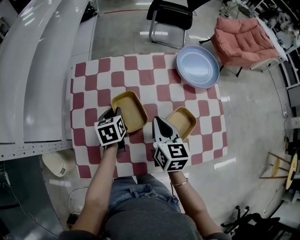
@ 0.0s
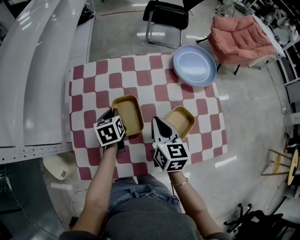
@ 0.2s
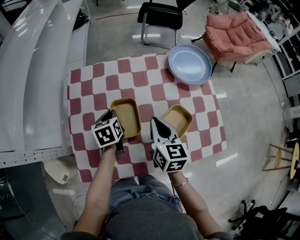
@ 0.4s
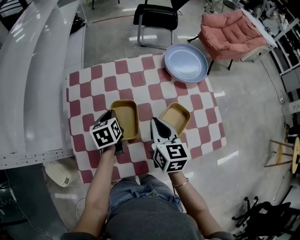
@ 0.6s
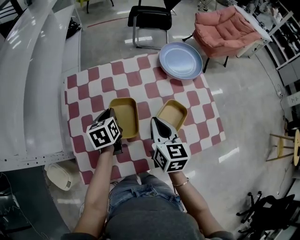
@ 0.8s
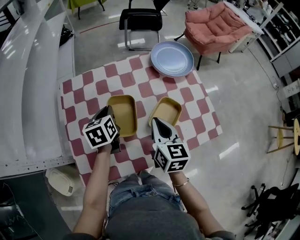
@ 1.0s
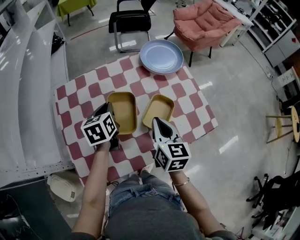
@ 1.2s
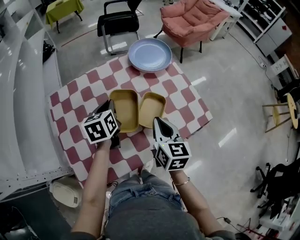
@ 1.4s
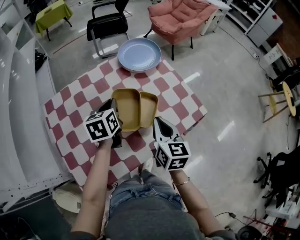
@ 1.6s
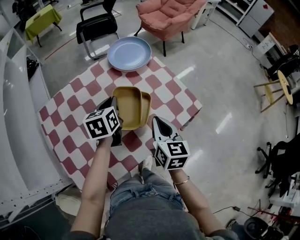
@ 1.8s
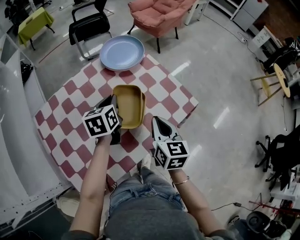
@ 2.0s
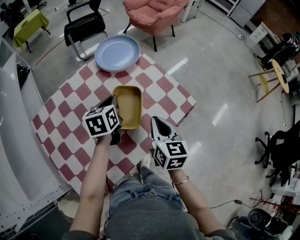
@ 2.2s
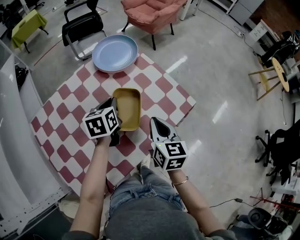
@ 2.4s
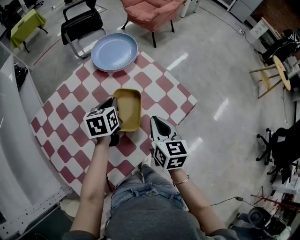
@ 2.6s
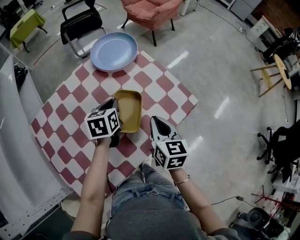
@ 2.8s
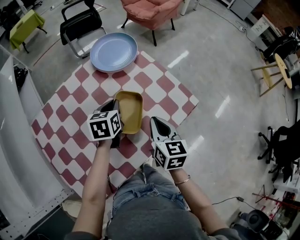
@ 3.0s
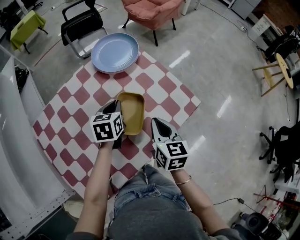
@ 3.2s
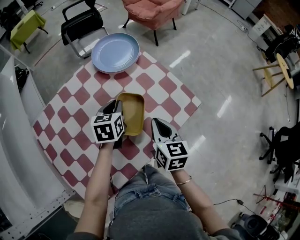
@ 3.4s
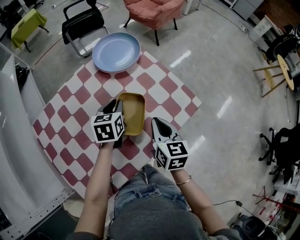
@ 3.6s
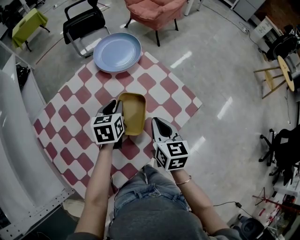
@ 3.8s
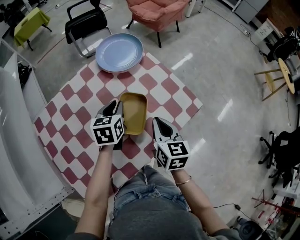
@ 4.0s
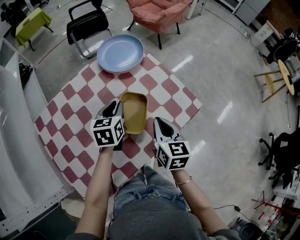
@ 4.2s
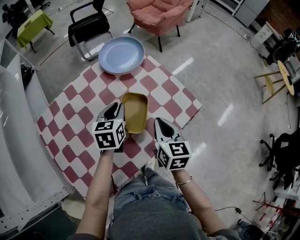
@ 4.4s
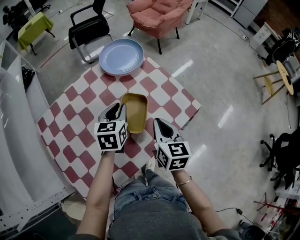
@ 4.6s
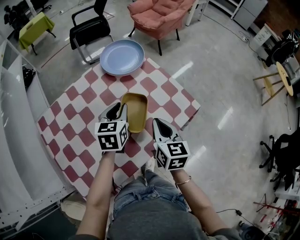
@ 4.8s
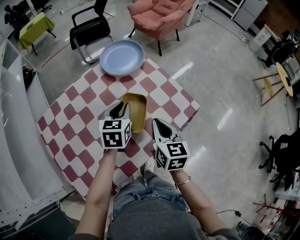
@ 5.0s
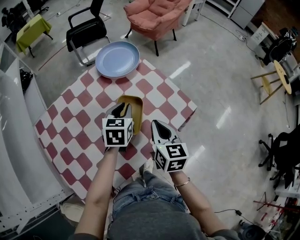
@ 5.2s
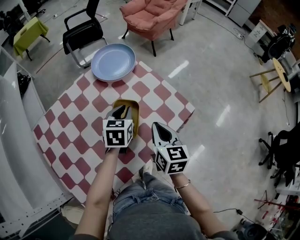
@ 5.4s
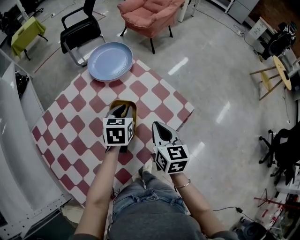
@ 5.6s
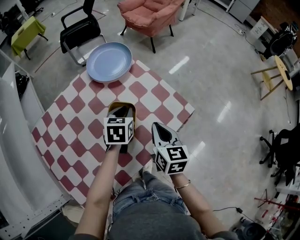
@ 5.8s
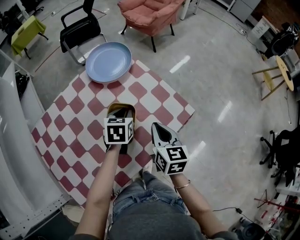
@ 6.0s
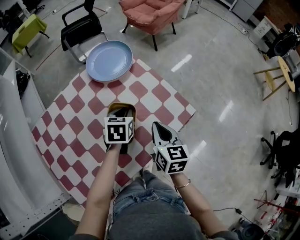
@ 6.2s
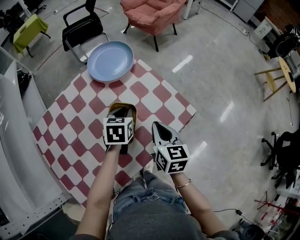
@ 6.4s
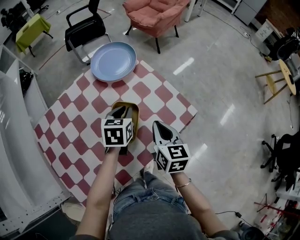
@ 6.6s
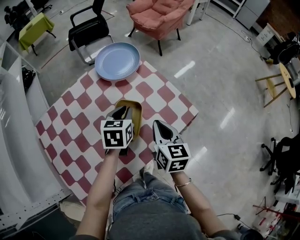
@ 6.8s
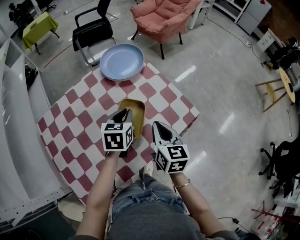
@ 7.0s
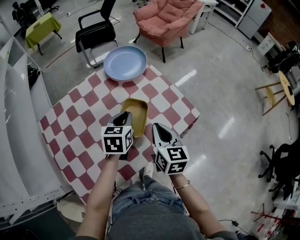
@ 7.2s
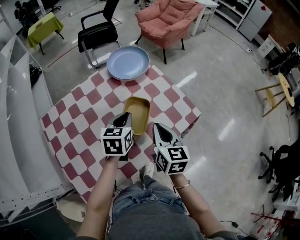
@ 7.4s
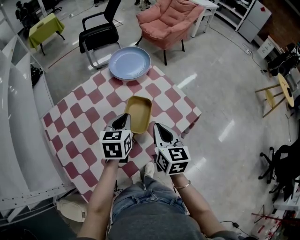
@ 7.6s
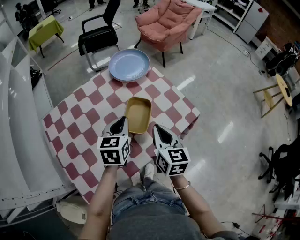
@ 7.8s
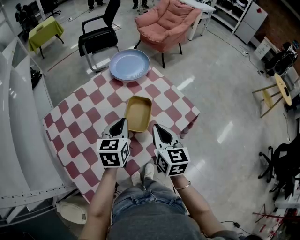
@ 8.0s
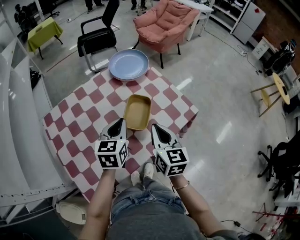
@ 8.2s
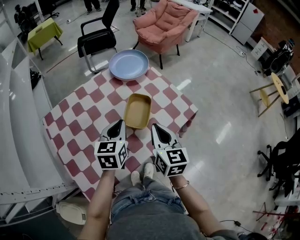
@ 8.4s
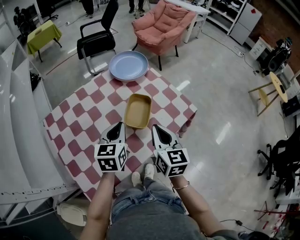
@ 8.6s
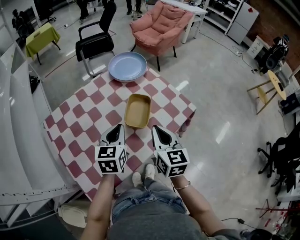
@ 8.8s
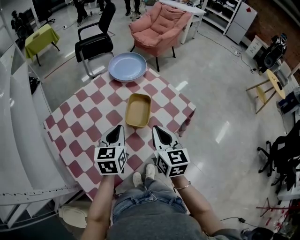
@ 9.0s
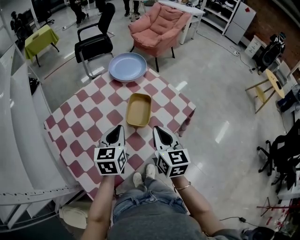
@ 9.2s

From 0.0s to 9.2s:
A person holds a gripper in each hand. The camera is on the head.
From 0.0s to 1.6s: The left gripper shifts by approximately 20 cm, and changes its angle by approximately 30 degrees. The right gripper changes place by roughly 15 cm, and changes its angle by about 30 degrees.
From 1.6s to 3.0s: The right gripper goes roughly 5 cm to the right; the left gripper is displaced to the right, downward and forward by about 10 cm.
From 3.0s to 4.6s: The left gripper shifts by roughly 5 cm.
From 4.6s to 6.2s: The right gripper moves roughly 5 cm. The left gripper is displaced to the right and downward by roughly 10 cm.
From 6.2s to 7.6s: The right gripper goes some 10 cm to the left, backward and upward. Meanwhile the left gripper goes some 15 cm backward, upward and to the left.
From 7.6s to 9.2s: Both grippers move backward, some 10 cm.

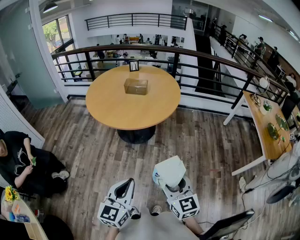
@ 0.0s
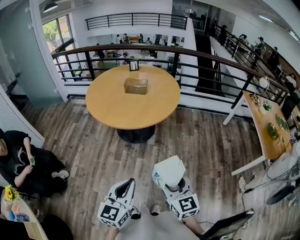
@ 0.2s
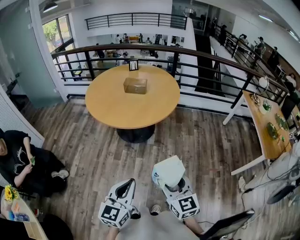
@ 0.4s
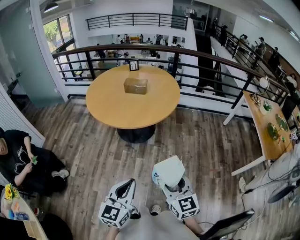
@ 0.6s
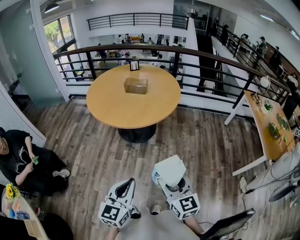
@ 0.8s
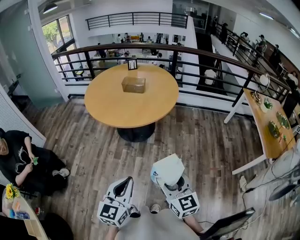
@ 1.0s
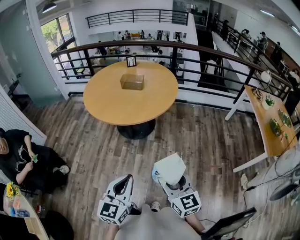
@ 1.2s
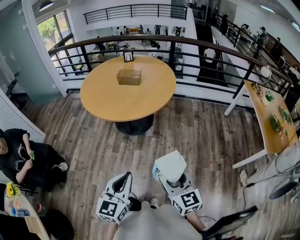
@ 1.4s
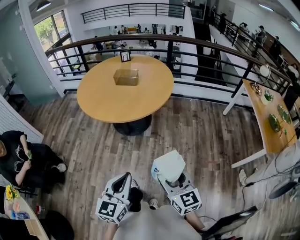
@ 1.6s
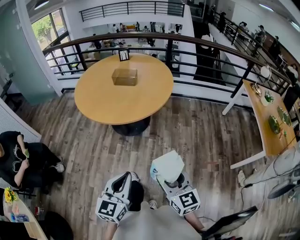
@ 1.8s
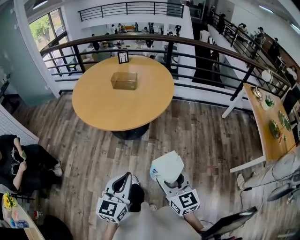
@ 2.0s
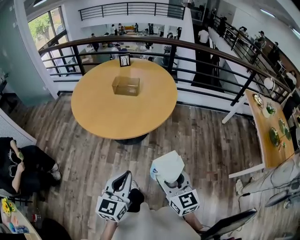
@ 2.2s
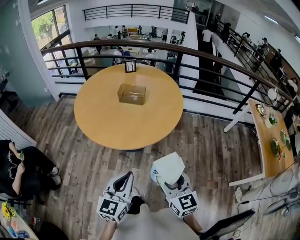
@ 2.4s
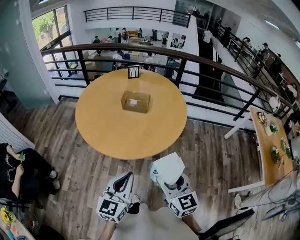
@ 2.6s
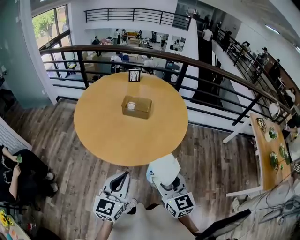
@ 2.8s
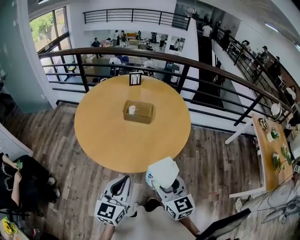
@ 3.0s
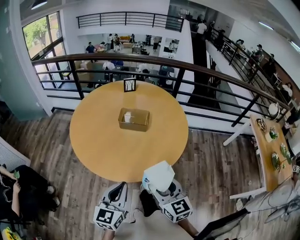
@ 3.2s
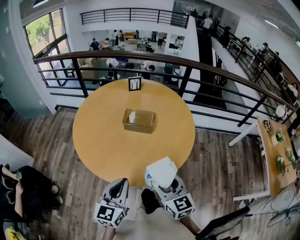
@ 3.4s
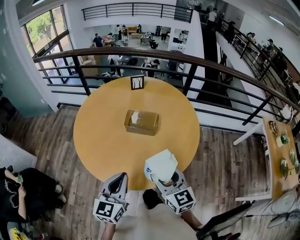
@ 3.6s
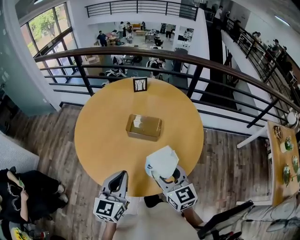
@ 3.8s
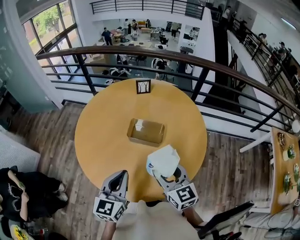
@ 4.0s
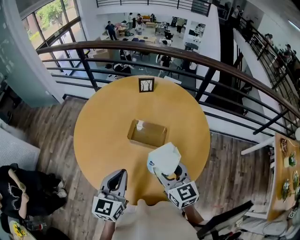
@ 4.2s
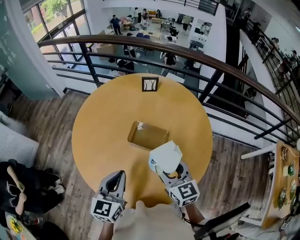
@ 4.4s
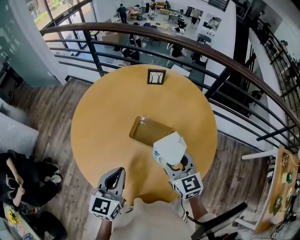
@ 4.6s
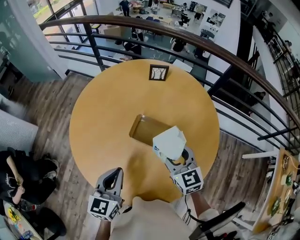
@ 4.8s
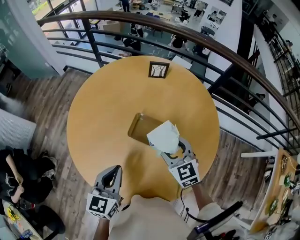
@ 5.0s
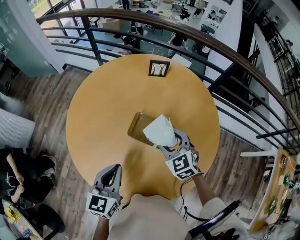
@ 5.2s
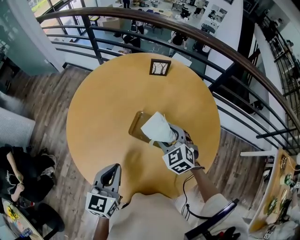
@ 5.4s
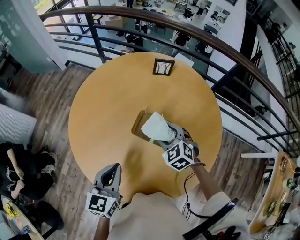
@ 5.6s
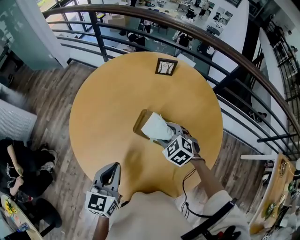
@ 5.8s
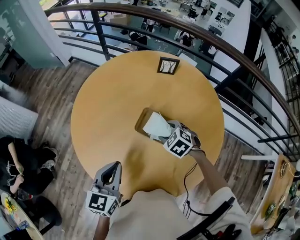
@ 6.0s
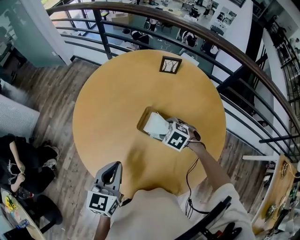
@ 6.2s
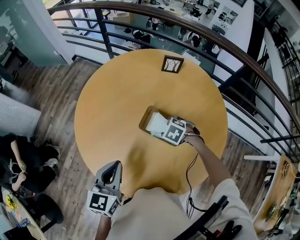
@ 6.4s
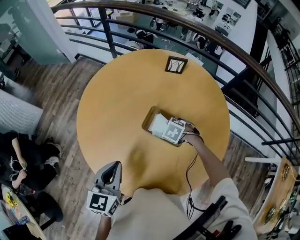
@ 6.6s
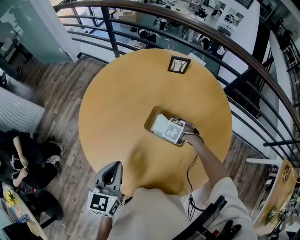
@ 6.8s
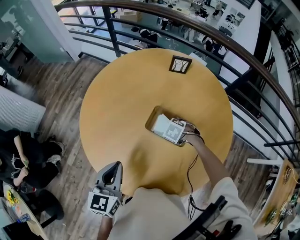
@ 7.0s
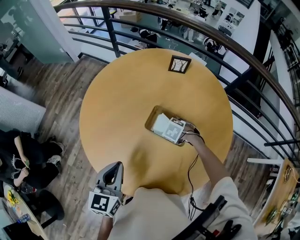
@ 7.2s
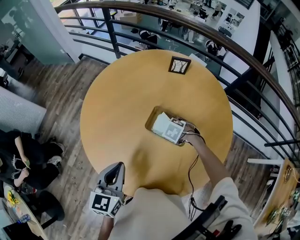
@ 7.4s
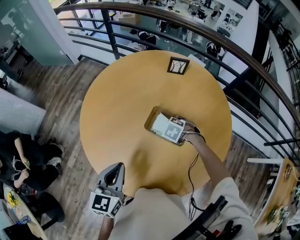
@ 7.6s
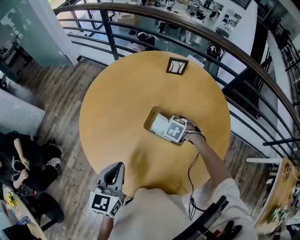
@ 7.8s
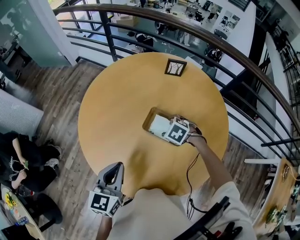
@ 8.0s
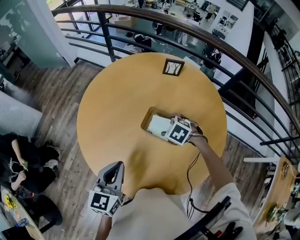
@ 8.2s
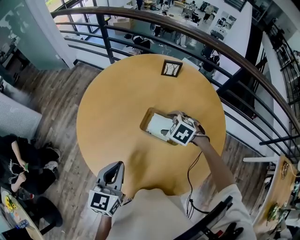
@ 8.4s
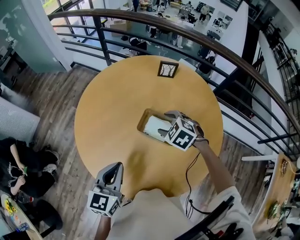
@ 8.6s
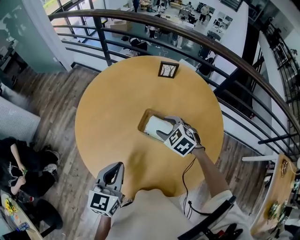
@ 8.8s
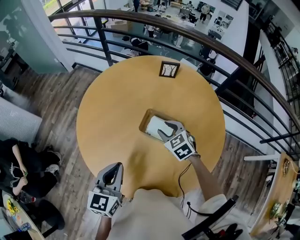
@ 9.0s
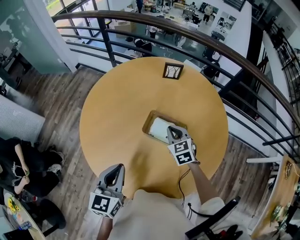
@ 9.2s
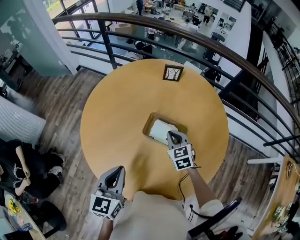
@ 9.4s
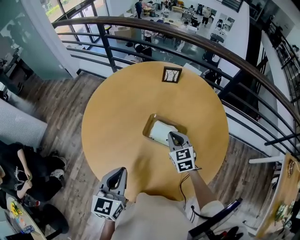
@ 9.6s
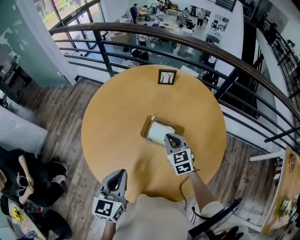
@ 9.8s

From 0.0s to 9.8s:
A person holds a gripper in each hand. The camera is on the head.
From 0.0s to 1.4s: The right gripper heads to the right, covering approximately 5 cm.
From 1.4s to 2.8s: Both grippers move forward, approximately 25 cm.
From 2.8s to 4.2s: The grippers both shift forward by approximately 25 cm.
From 4.2s to 5.6s: The right gripper heads forward and downward, covering approximately 20 cm, and tilts its fingers roughly 30 degrees downward, while the left gripper moves about 5 cm.
From 5.6s to 7.0s: The right gripper moves downward, approximately 15 cm, and tilts its fingers roughly 30 degrees downward.
From 7.0s to 8.4s: The right gripper moves upward, roughly 15 cm.
From 8.4s to 9.8s: The right gripper points its fingers roughly 40 degrees further upward, and closes its fingers.

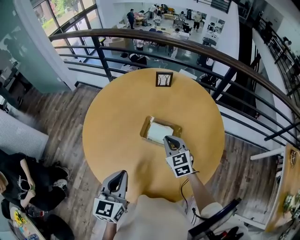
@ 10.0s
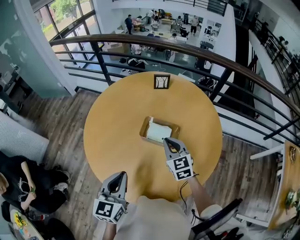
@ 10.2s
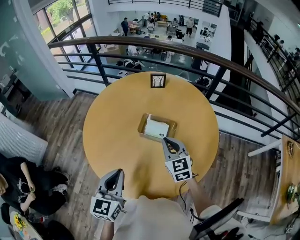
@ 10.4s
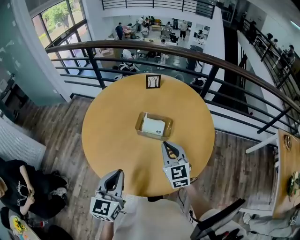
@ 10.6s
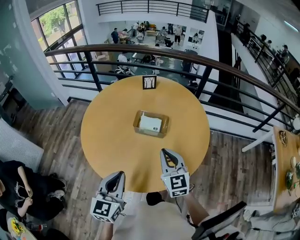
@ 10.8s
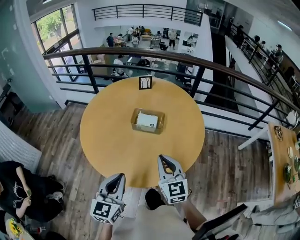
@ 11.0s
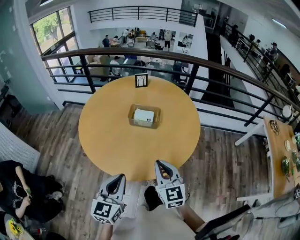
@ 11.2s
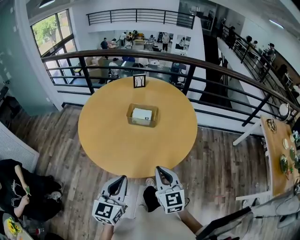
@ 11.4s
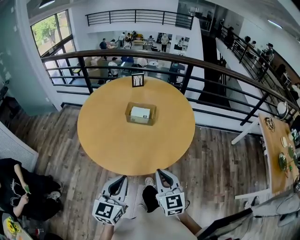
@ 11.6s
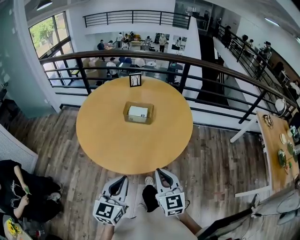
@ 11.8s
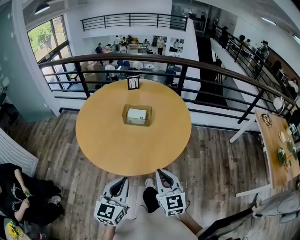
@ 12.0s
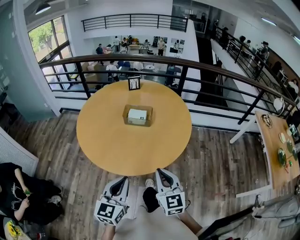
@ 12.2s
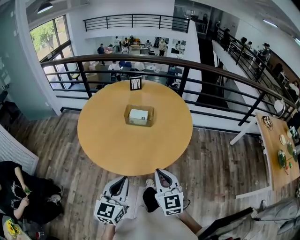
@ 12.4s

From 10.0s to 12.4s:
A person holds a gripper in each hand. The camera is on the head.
From 10.0s to 11.2s: The right gripper travels backward by about 25 cm, and swivels about 20 degrees. Meanwhile the left gripper travels backward by approximately 15 cm.
From 11.2s to 12.4s: The right gripper shifts approximately 5 cm backward. Meanwhile the left gripper shifts by approximately 5 cm.

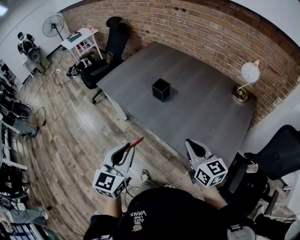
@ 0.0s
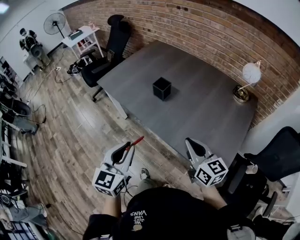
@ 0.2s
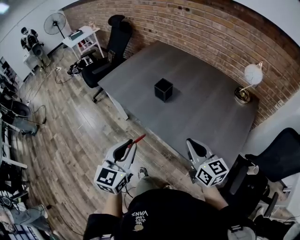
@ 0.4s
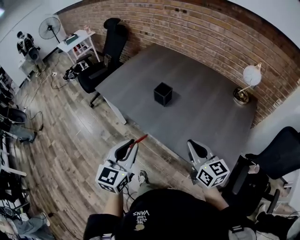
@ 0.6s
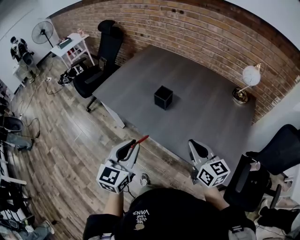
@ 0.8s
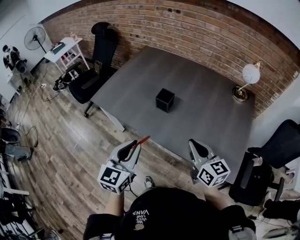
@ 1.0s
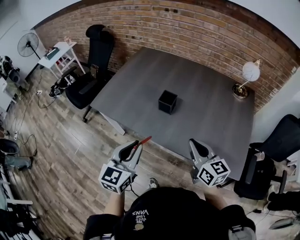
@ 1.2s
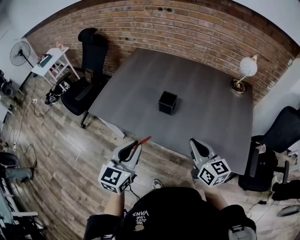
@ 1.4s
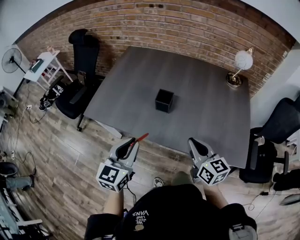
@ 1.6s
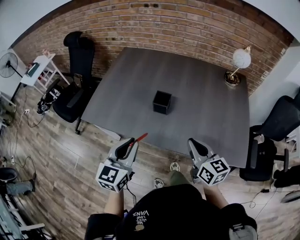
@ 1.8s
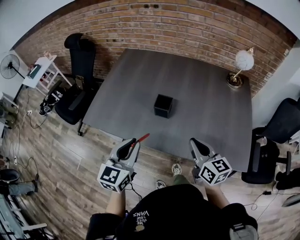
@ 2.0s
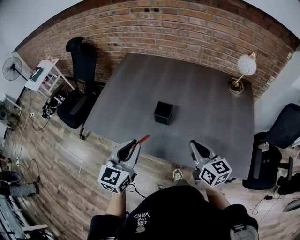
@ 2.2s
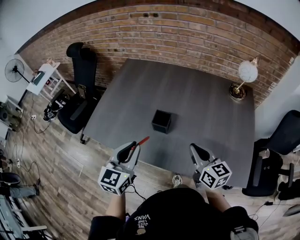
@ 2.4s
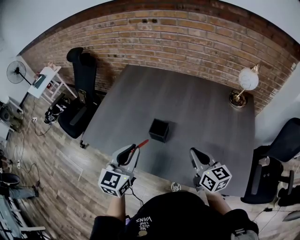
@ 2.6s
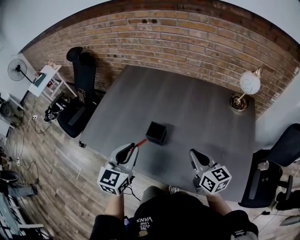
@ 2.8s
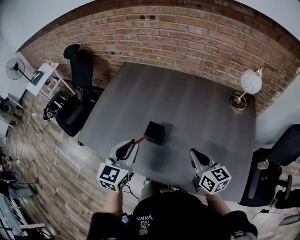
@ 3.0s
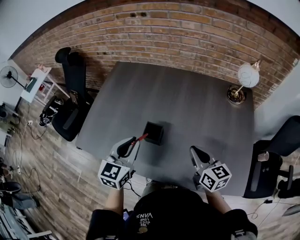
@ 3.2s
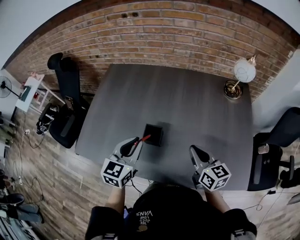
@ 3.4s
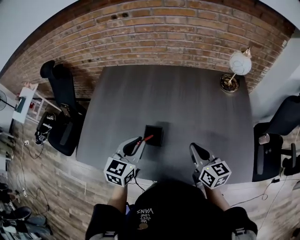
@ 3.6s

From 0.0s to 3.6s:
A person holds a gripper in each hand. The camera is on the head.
From 0.0s to 1.8s: The left gripper ends up about 25 cm from where it was, and turns by some 30 degrees. Meanwhile the right gripper ends up some 15 cm from where it was, and changes its angle by roughly 30 degrees.
From 1.8s to 3.6s: The two grippers go approximately 20 cm forward.
